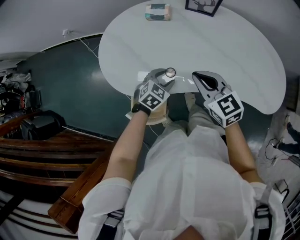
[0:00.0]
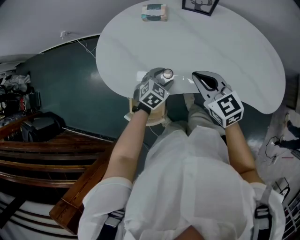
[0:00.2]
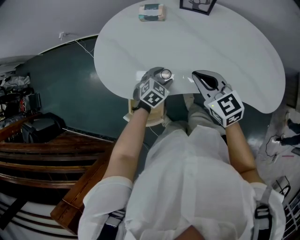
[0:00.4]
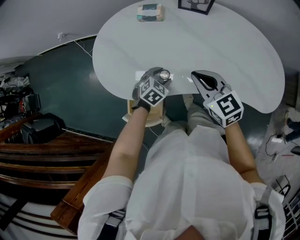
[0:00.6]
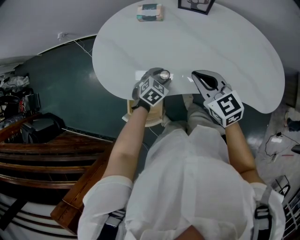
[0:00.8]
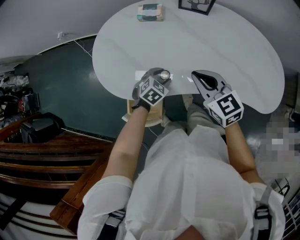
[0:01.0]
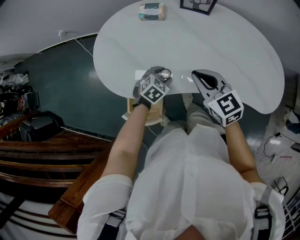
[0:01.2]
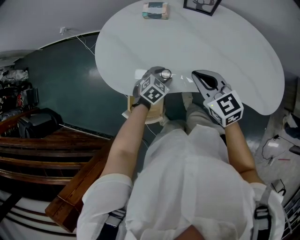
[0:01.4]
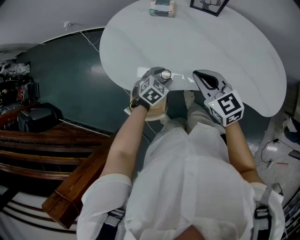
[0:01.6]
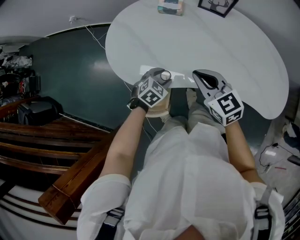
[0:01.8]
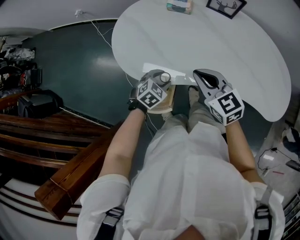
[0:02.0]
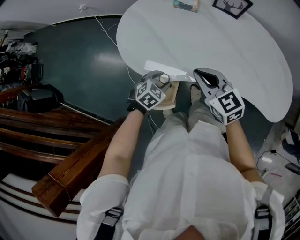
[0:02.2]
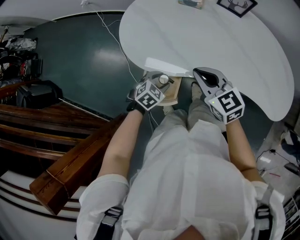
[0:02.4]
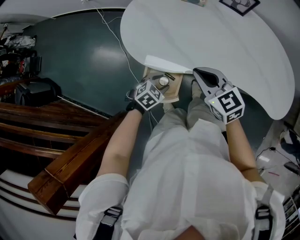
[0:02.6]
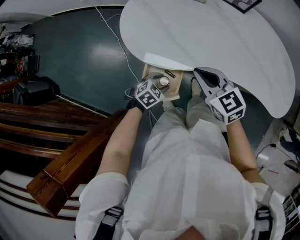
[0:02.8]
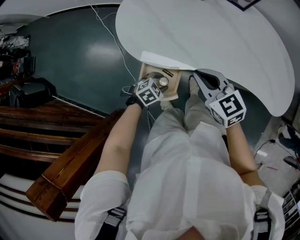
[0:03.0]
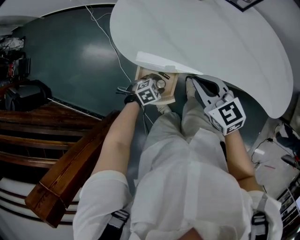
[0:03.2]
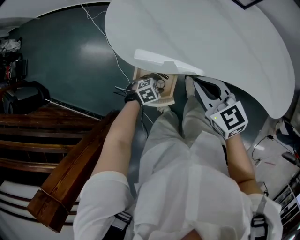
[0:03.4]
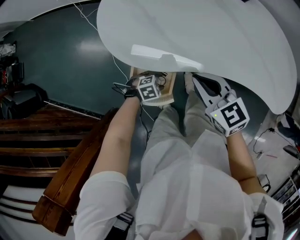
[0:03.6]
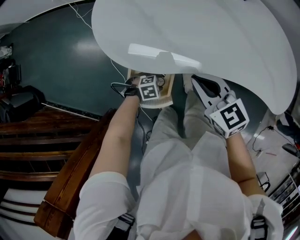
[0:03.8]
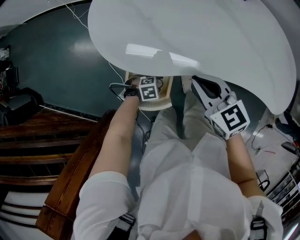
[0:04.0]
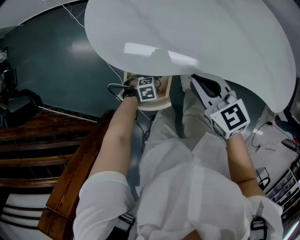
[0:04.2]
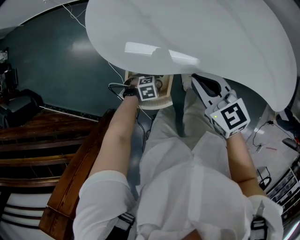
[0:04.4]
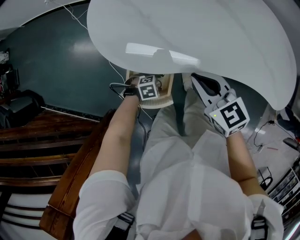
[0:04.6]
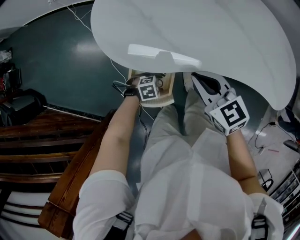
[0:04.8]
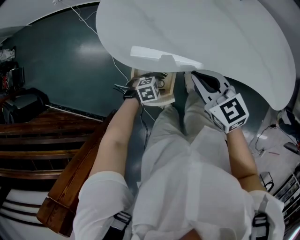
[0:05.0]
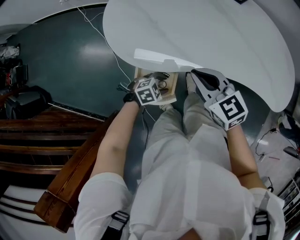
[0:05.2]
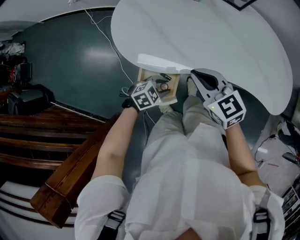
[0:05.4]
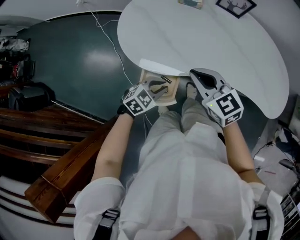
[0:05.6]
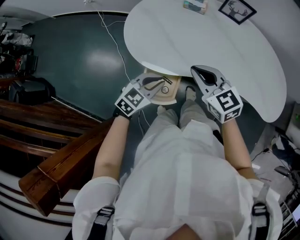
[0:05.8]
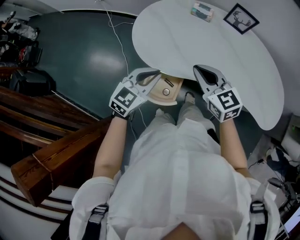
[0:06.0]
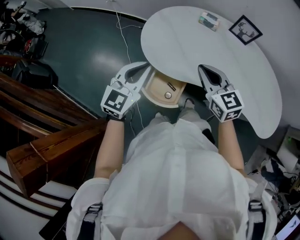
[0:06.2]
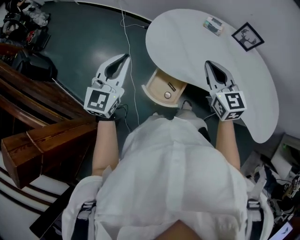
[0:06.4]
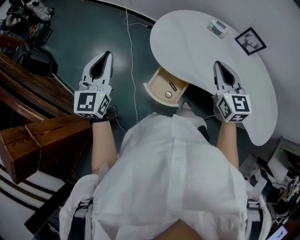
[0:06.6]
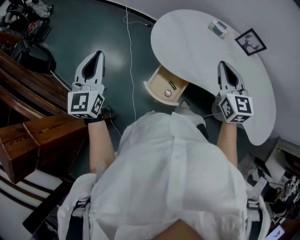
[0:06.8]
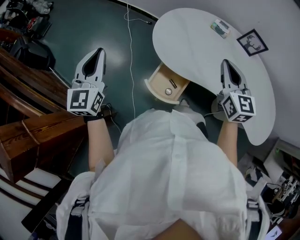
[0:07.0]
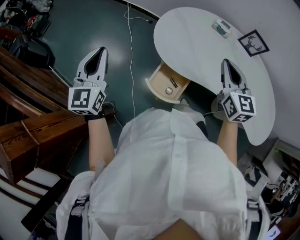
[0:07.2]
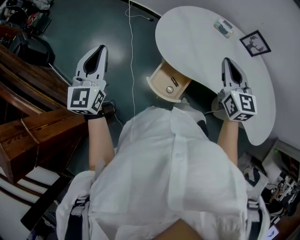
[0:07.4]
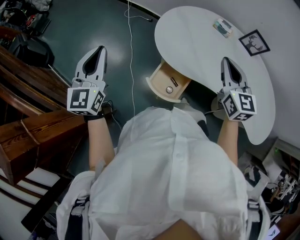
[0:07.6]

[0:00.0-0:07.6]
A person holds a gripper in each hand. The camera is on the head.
0:00.0 to 0:01.6: The grippers make only small movements.
0:01.6 to 0:03.0: The left gripper travels backward, to the left and downward by approximately 20 cm, while the right gripper travels to the left and backward by about 15 cm.
0:03.0 to 0:04.6: The right gripper is displaced downward by about 5 cm. The left gripper travels downward by about 10 cm, and turns by roughly 30 degrees.
0:04.6 to 0:06.0: The left gripper moves upward, approximately 40 cm, tips its fingers upward by some 40 degrees, and closes. The right gripper moves upward, some 15 cm.
0:06.0 to 0:07.6: The right gripper heads upward, covering roughly 10 cm. The left gripper is displaced to the left and upward by about 30 cm, and changes its angle by some 50 degrees.

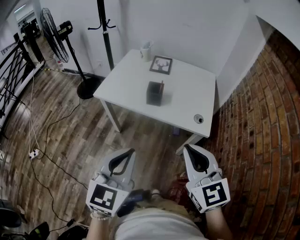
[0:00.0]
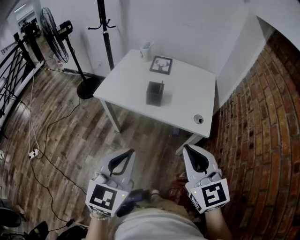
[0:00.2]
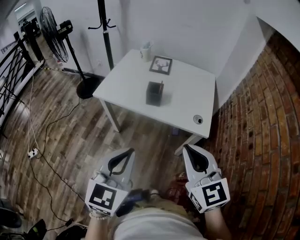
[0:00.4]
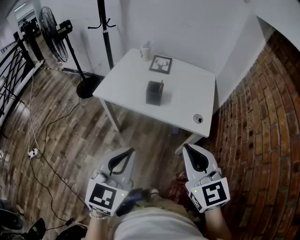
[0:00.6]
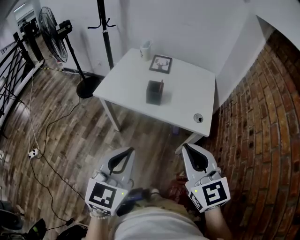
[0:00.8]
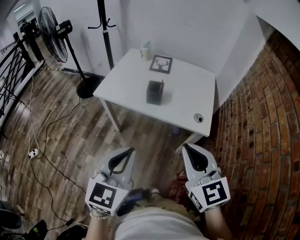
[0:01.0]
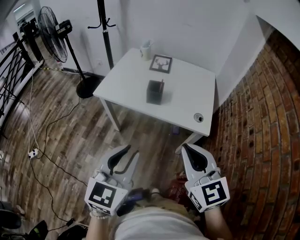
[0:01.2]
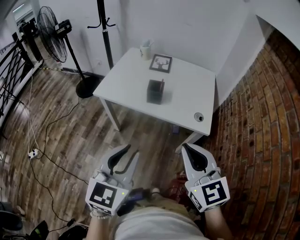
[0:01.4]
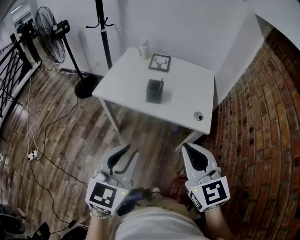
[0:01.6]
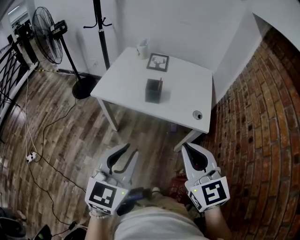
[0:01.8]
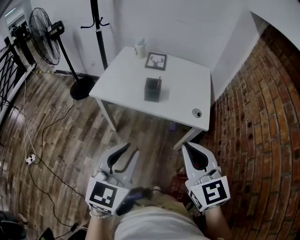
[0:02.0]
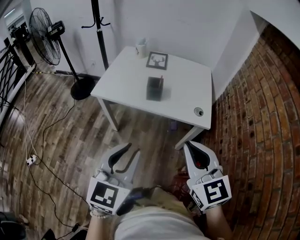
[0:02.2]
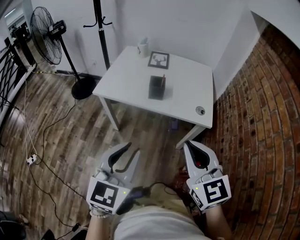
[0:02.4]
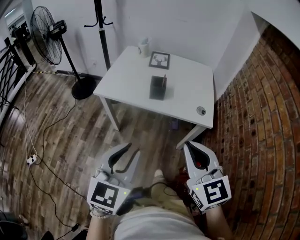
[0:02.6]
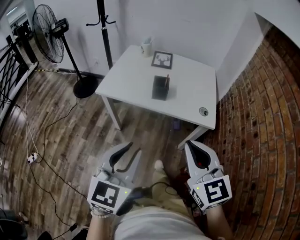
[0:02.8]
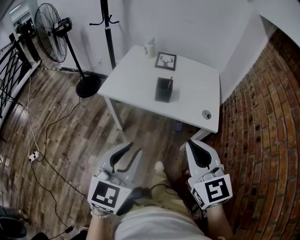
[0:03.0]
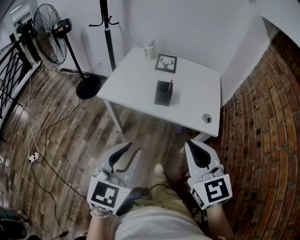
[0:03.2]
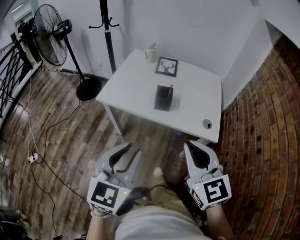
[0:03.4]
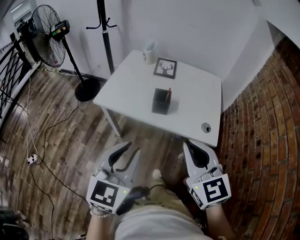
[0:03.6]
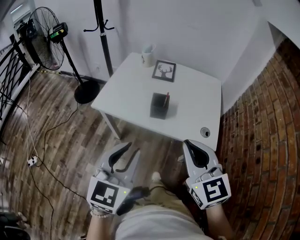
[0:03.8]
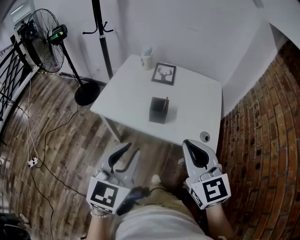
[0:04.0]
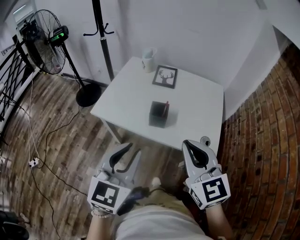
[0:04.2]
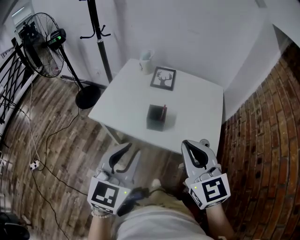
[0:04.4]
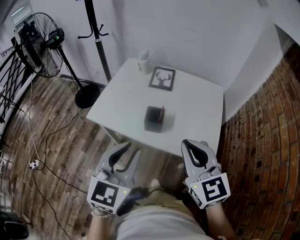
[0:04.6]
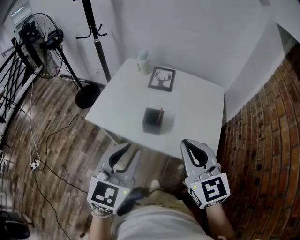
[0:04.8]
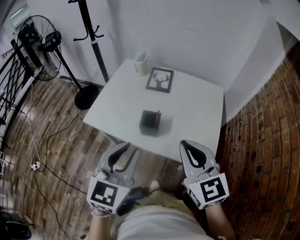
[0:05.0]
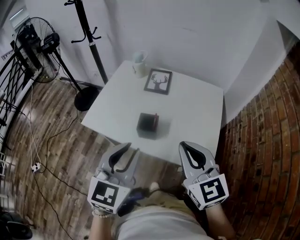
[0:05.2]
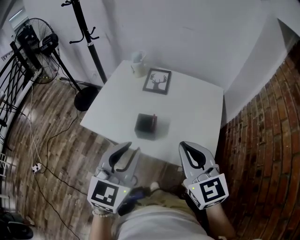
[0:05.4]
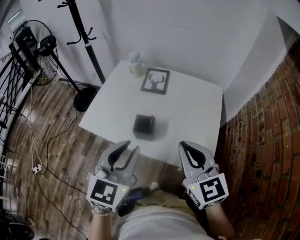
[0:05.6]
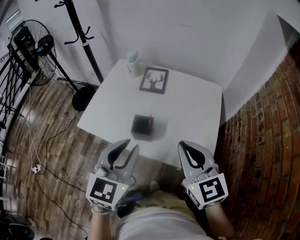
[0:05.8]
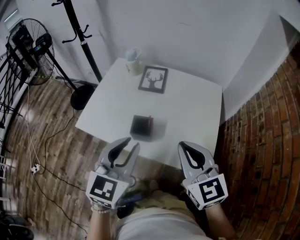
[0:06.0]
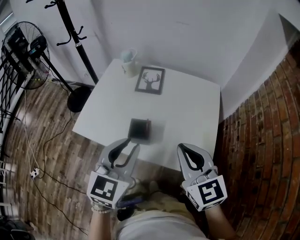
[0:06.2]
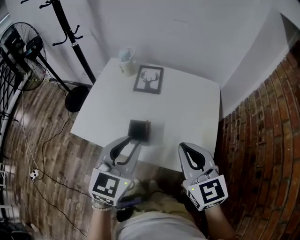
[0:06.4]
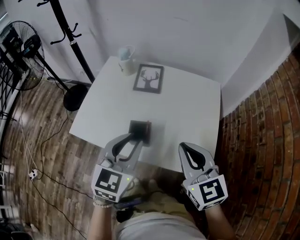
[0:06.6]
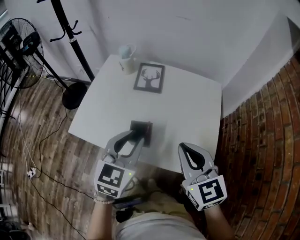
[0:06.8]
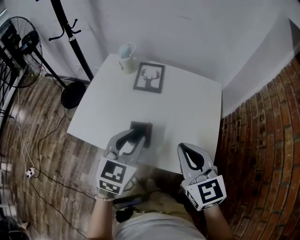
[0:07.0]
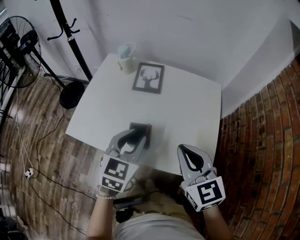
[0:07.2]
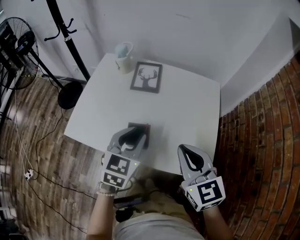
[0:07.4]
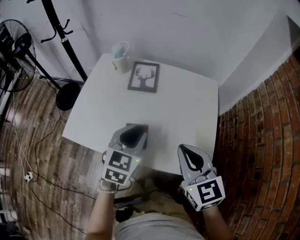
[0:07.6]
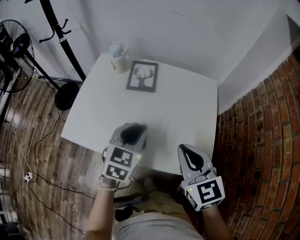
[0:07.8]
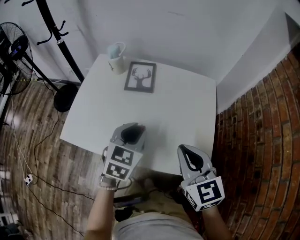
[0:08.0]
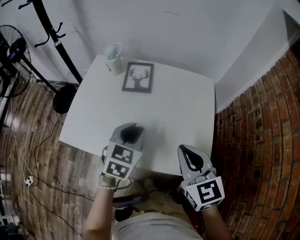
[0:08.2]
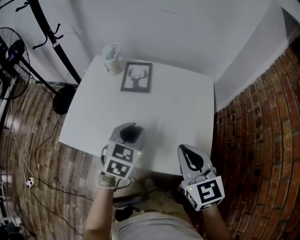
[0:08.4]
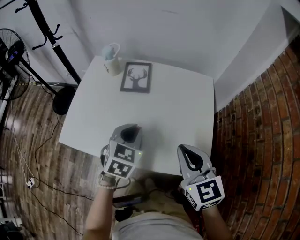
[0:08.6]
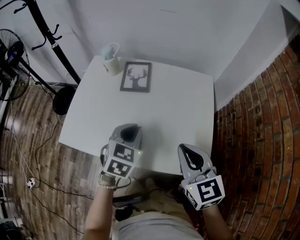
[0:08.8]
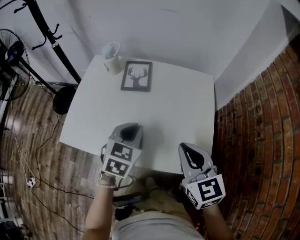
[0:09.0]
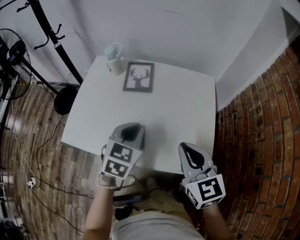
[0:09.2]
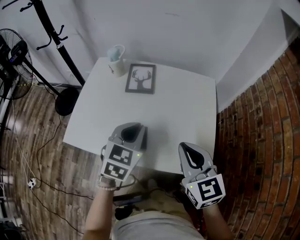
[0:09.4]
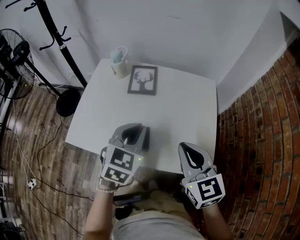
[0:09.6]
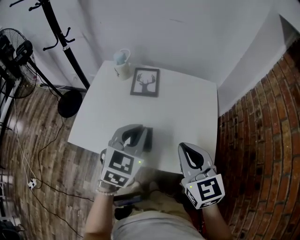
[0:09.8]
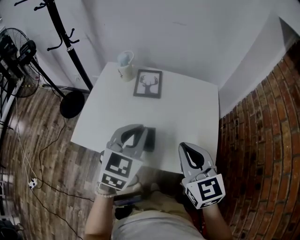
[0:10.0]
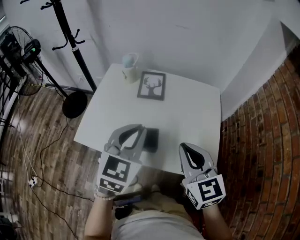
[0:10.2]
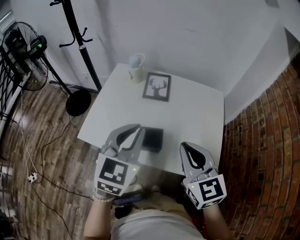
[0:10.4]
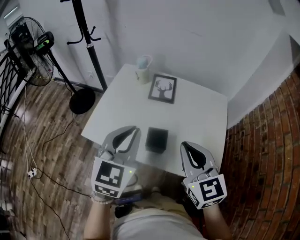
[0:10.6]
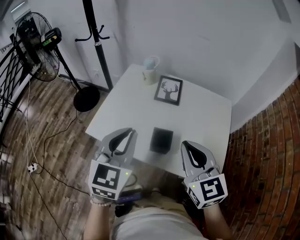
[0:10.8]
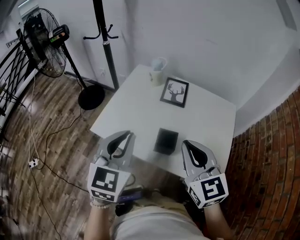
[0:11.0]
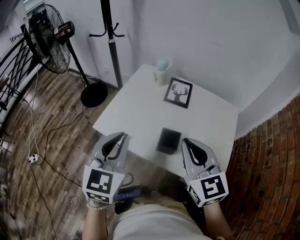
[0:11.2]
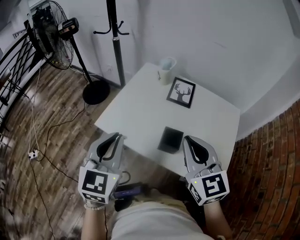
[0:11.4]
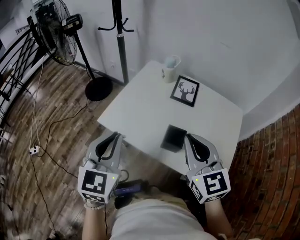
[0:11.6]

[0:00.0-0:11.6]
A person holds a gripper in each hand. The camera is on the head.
0:00.0 to 0:01.4: The left gripper opens.
0:01.4 to 0:02.8: The grippers make only small movements.
0:02.8 to 0:04.4: The two grippers go some 20 cm forward.
0:04.4 to 0:05.8: Both grippers move forward and to the right, some 10 cm.
0:05.8 to 0:07.2: The right gripper heads forward, covering approximately 5 cm, while the left gripper shifts approximately 15 cm forward and downward.
0:07.2 to 0:08.8: The left gripper ends up approximately 5 cm from where it was.
0:08.8 to 0:10.2: The left gripper goes roughly 15 cm upward. Meanwhile the right gripper shifts some 5 cm to the left.
0:10.2 to 0:11.6: The right gripper moves to the left, approximately 10 cm; the left gripper shifts roughly 20 cm to the left, and changes its angle by approximately 30 degrees.

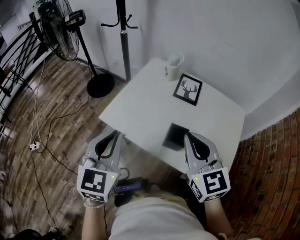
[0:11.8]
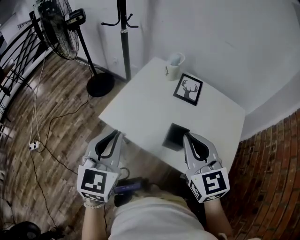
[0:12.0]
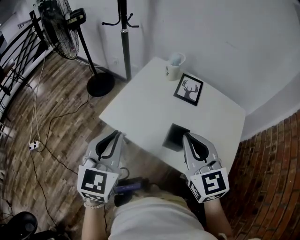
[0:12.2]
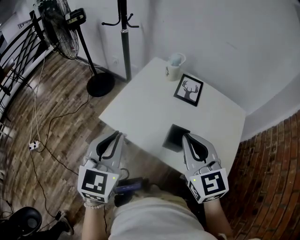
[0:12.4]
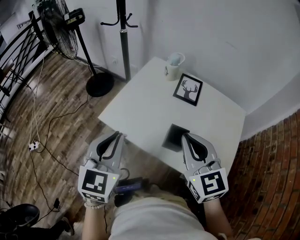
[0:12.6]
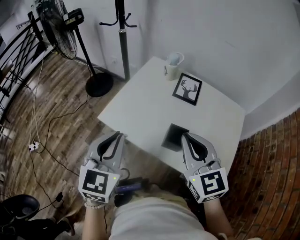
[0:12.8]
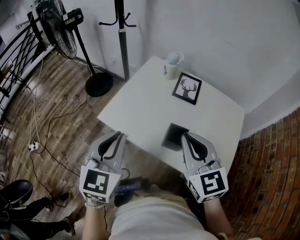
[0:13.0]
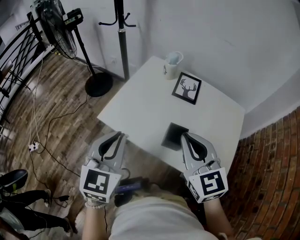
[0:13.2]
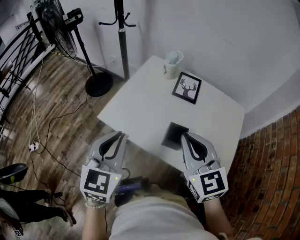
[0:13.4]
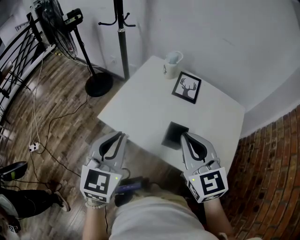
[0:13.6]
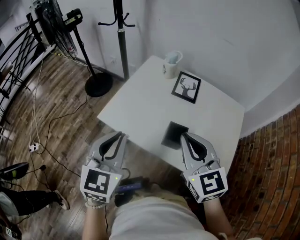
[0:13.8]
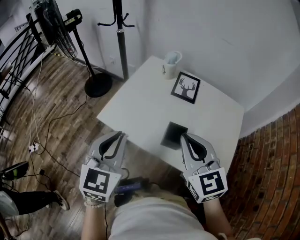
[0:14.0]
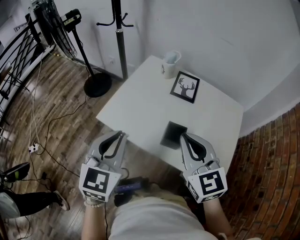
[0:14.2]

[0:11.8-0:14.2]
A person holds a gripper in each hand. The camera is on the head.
0:11.8 to 0:13.0: There are only small adjustments of the grippers.
0:13.0 to 0:14.2: The two grippers keep their place.

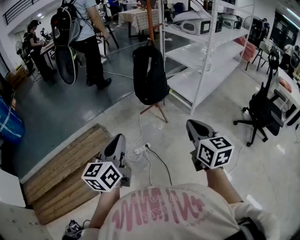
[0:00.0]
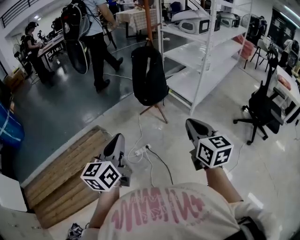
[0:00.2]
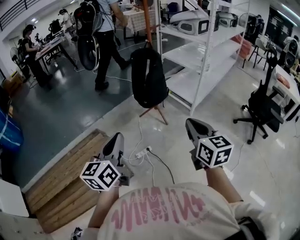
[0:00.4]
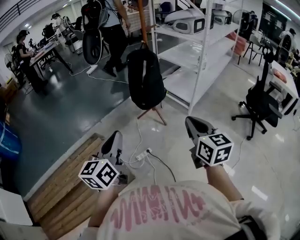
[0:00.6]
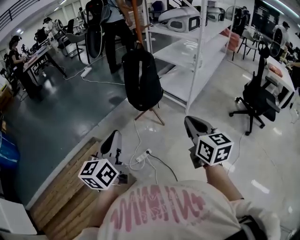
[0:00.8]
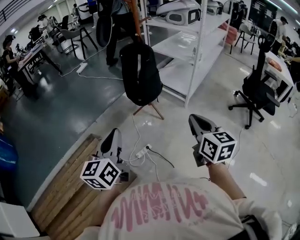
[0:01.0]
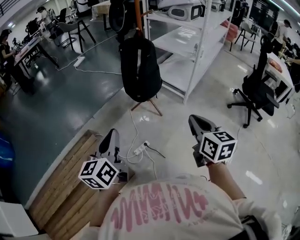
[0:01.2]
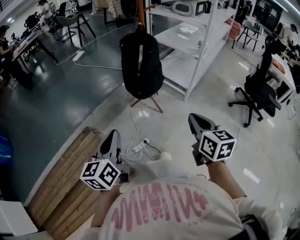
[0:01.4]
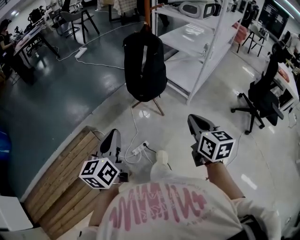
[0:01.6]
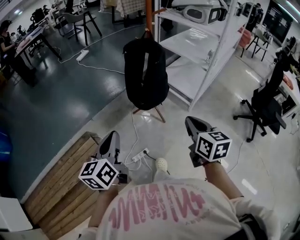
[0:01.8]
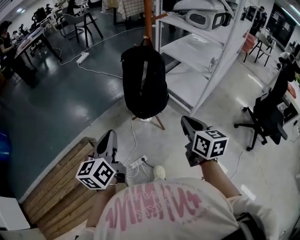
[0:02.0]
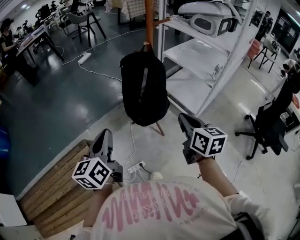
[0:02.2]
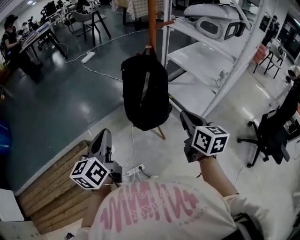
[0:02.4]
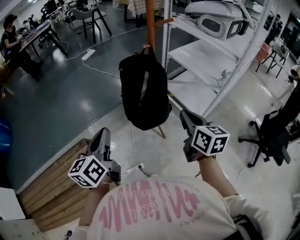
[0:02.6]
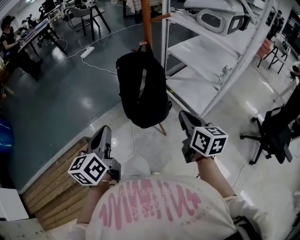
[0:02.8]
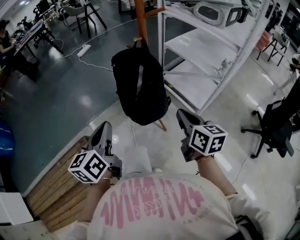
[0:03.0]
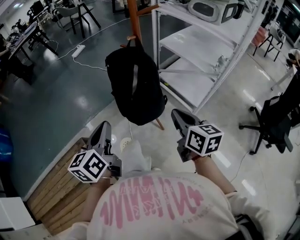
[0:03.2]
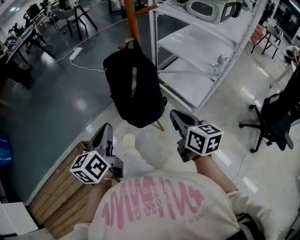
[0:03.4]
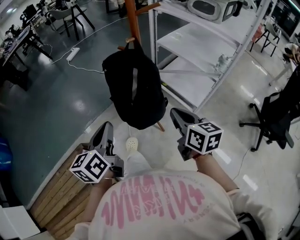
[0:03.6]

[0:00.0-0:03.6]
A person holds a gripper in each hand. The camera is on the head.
0:00.0 to 0:01.8: The grippers both shift forward by about 25 cm.
0:01.8 to 0:03.6: Both grippers travel together forward, approximately 25 cm.
